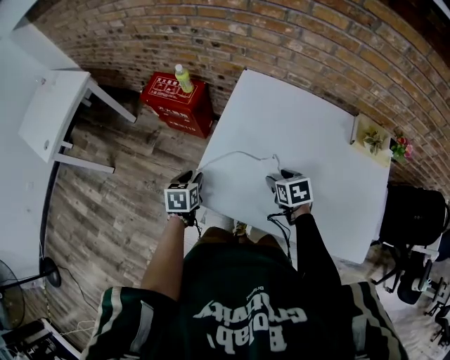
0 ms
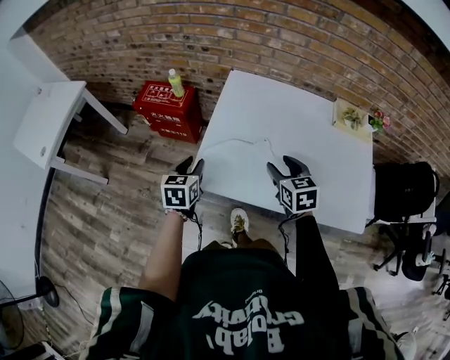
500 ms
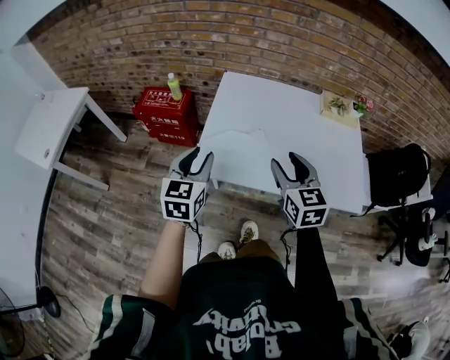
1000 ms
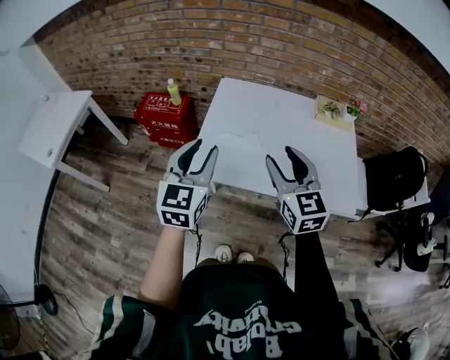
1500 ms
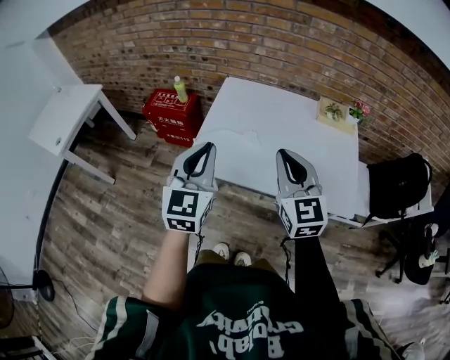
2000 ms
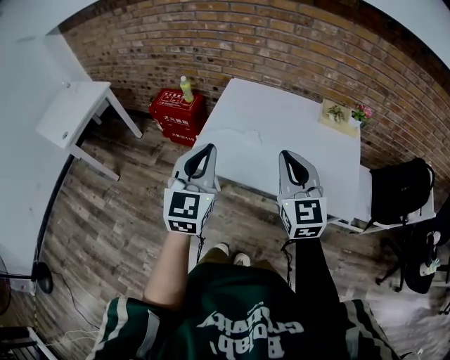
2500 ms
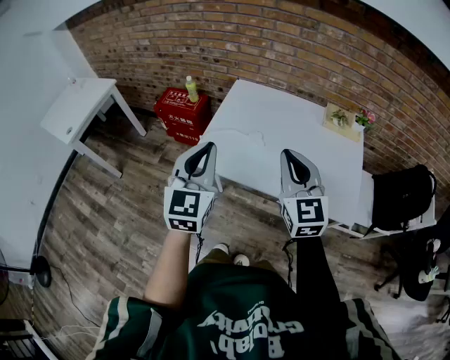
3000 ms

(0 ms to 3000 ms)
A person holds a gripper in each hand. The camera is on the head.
0 ms - 1500 ms: The grippers both shift upward and backward by roughly 40 cm. The right gripper tips its fingers upward by approximately 50 degrees, while the left gripper tilts its fingers approximately 40 degrees upward.
1500 ms - 3000 ms: The right gripper heads to the right, covering about 5 cm, and closes, while the left gripper goes some 5 cm backward, and closes.

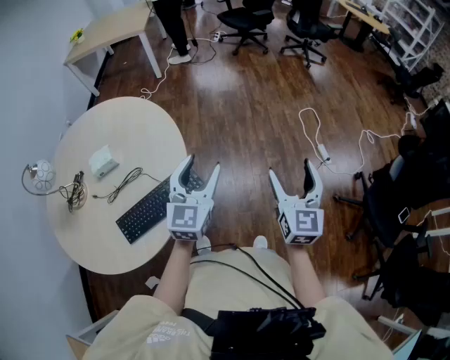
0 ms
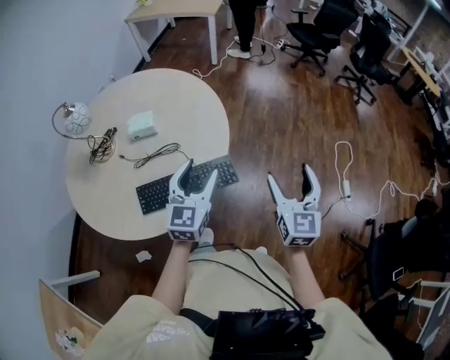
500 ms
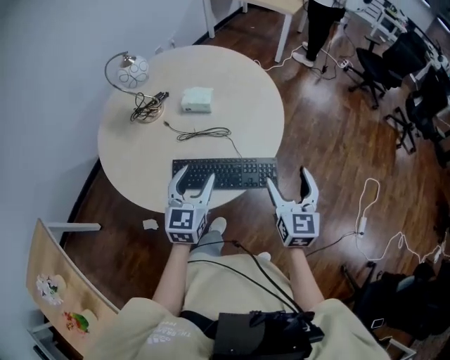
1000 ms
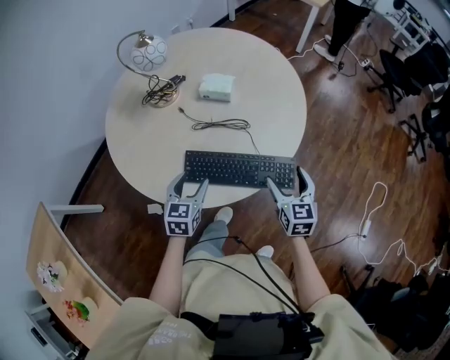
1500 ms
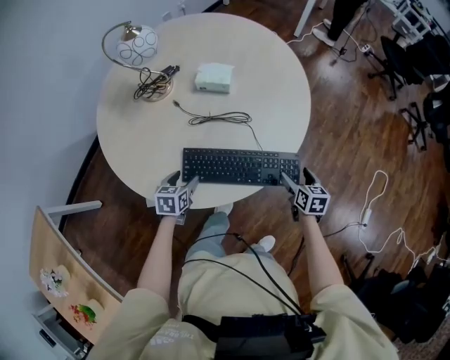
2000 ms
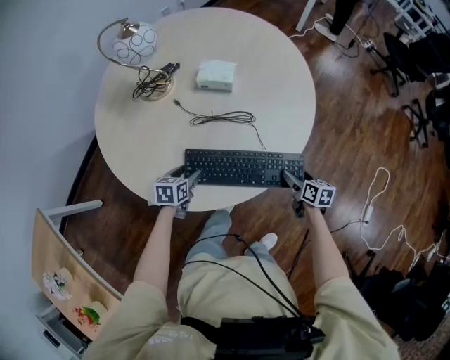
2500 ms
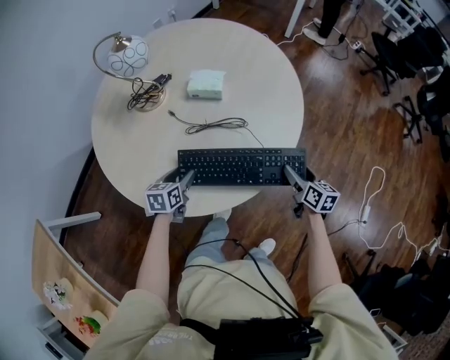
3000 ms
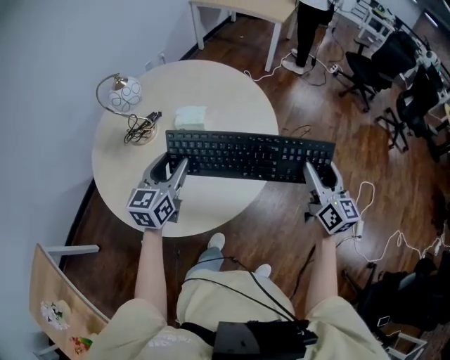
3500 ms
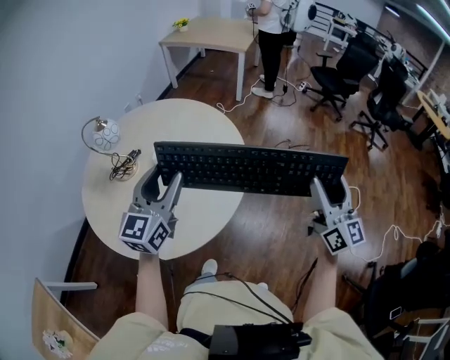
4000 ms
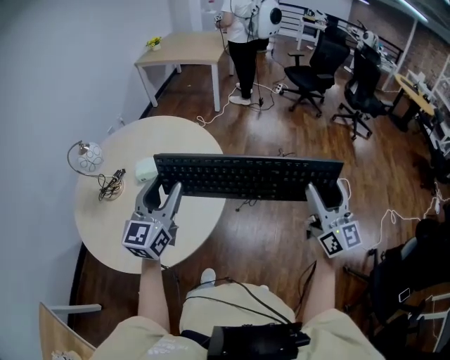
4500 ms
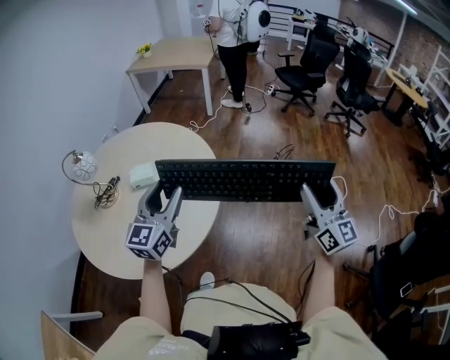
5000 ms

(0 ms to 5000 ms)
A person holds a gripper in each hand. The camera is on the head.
0 ms - 2500 ms: The left gripper moves approximately 60 cm, and tips its fingers downward by some 40 degrees. The right gripper is displaced downward by roughly 35 cm, and points its fingers approximately 30 degrees further downward.
2500 ms - 5000 ms: The two grippers go about 50 cm upward and to the right. The left gripper tilts its fingers roughly 50 degrees upward. Meanwhile the right gripper points its fingers about 60 degrees further upward.

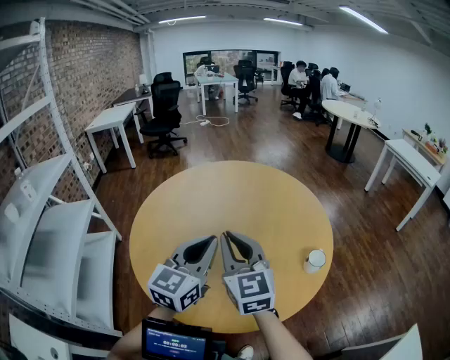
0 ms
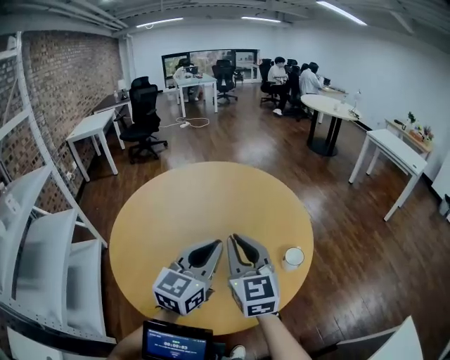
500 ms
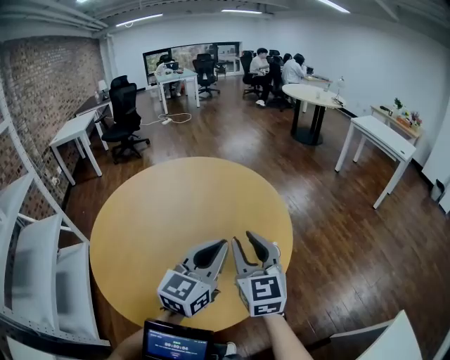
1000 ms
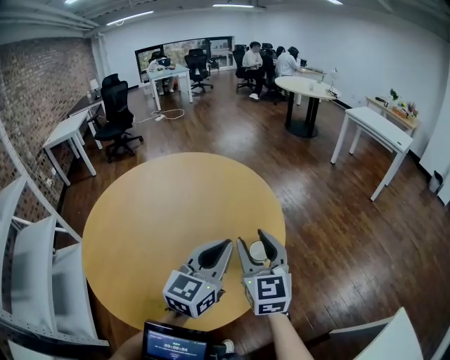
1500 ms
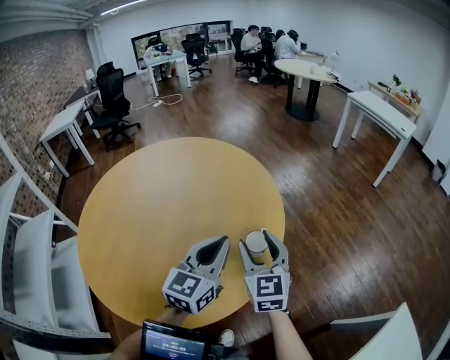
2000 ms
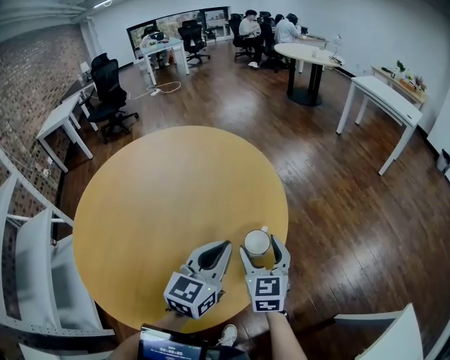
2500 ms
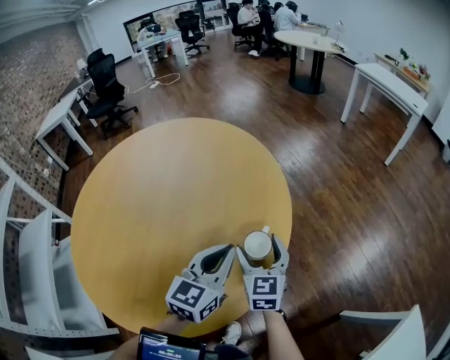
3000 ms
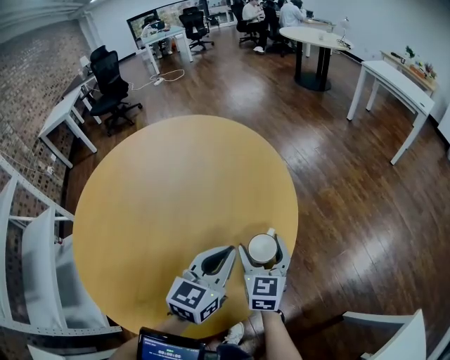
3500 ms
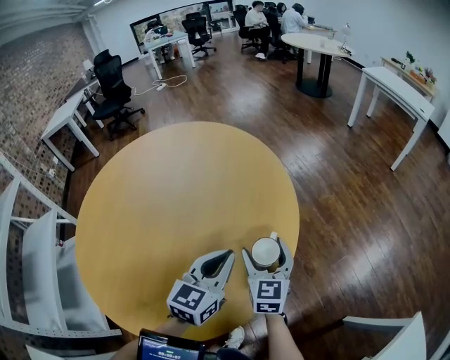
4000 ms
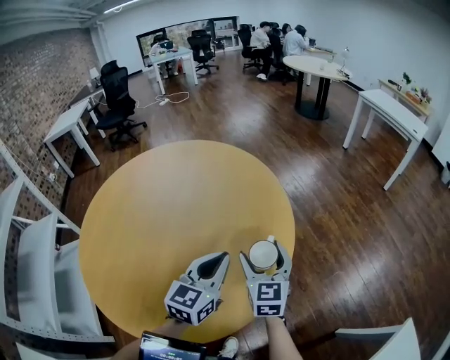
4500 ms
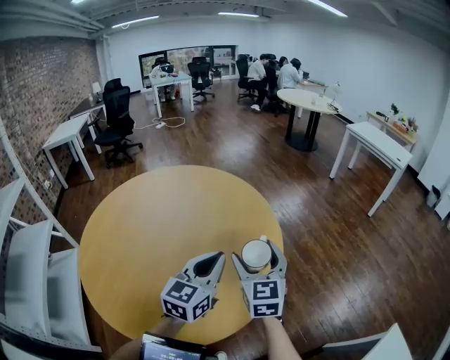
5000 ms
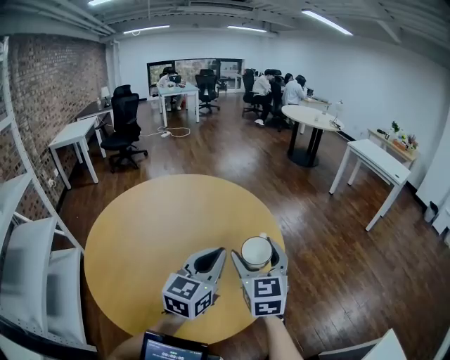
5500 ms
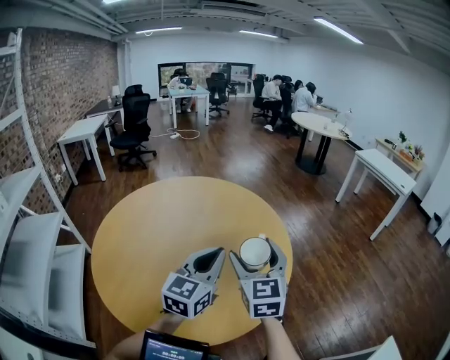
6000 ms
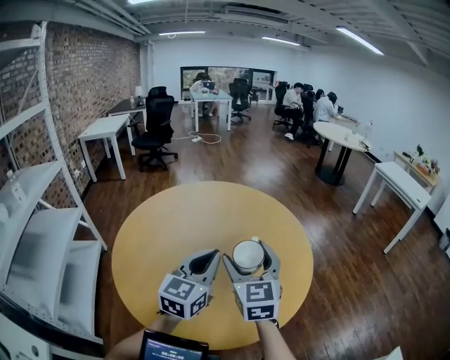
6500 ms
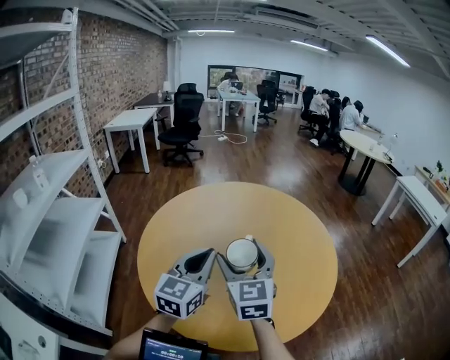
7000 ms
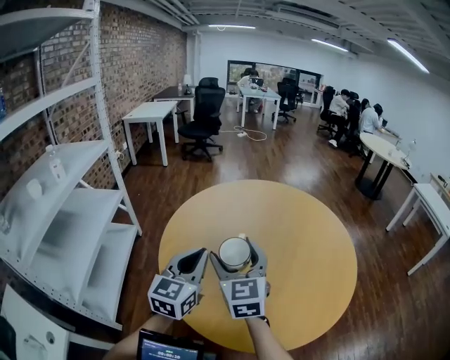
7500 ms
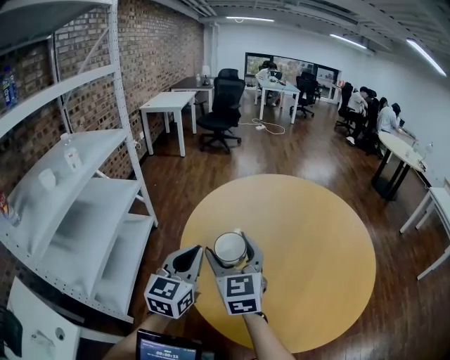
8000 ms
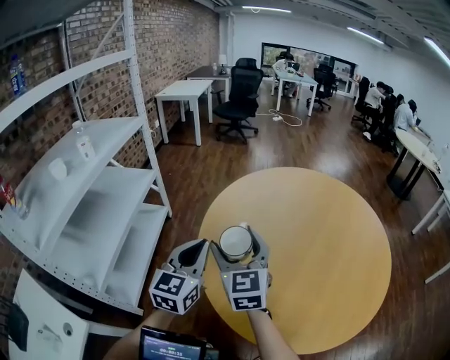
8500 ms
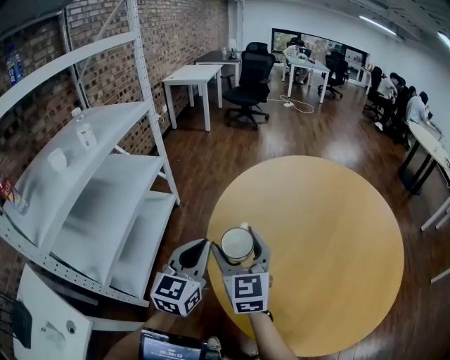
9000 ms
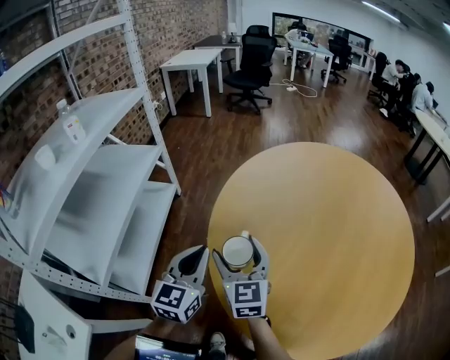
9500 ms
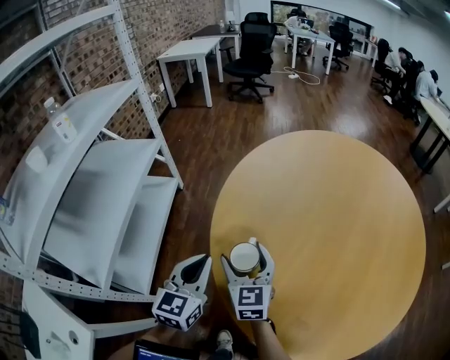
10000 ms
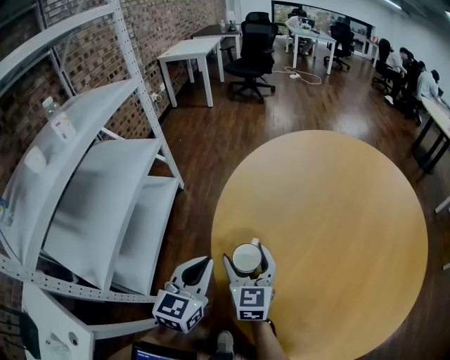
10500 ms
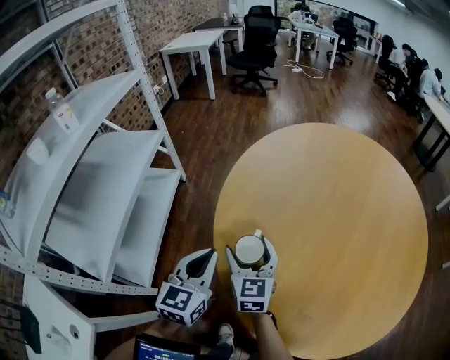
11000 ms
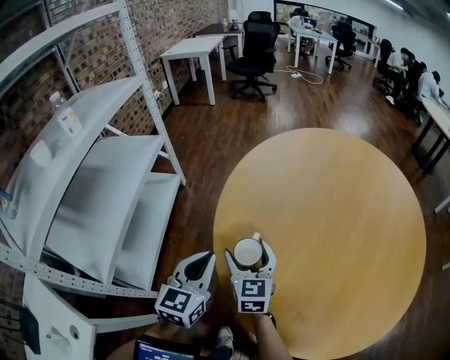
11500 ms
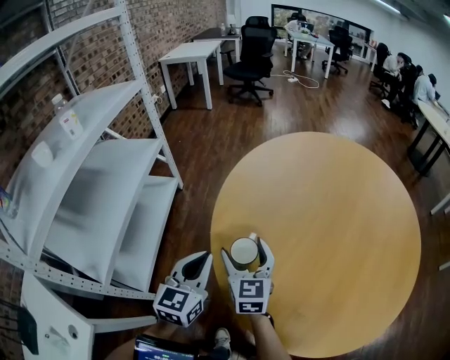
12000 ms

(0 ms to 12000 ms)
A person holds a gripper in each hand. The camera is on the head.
0 ms - 2000 ms: The right gripper shifts roughly 35 cm to the right and downward, rotates roughly 20 degrees, and opens; the left gripper travels to the right by some 25 cm.
2000 ms - 4000 ms: The left gripper is displaced downward by about 10 cm; the right gripper travels downward and forward by some 15 cm.
4000 ms - 6000 ms: Both grippers move upward and to the left, approximately 25 cm.
6000 ms - 8000 ms: The pair of grippers is taken roughly 40 cm. The right gripper turns by some 30 degrees; the left gripper turns by roughly 30 degrees.
8000 ms - 10000 ms: The left gripper travels downward and to the left by some 20 cm. Meanwhile the right gripper moves downward, roughly 25 cm.
10000 ms - 12000 ms: The grippers stay close to where they were, moving slightly.

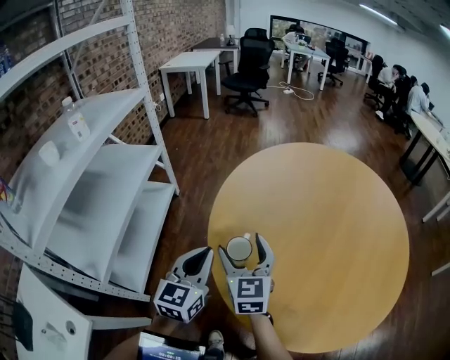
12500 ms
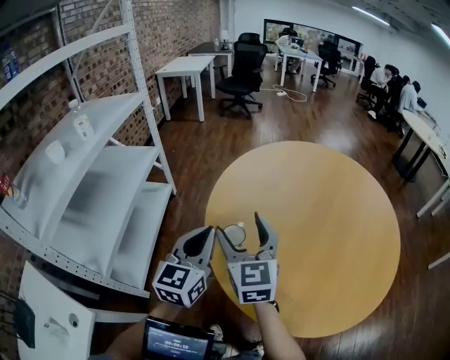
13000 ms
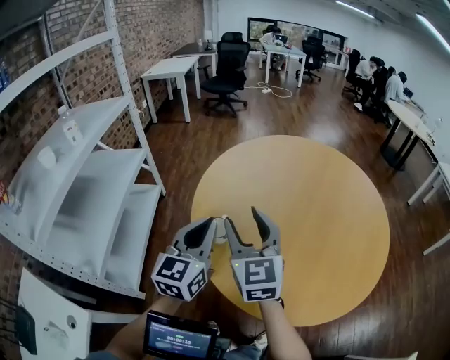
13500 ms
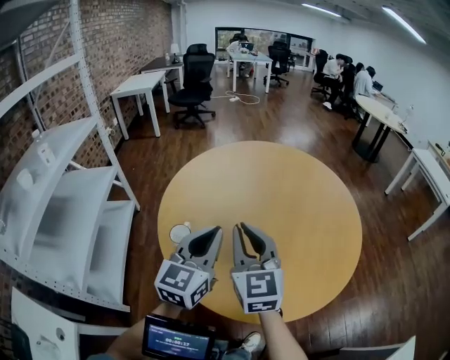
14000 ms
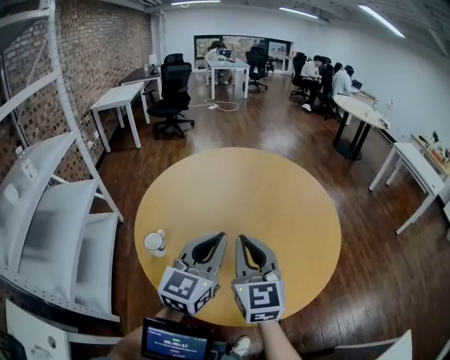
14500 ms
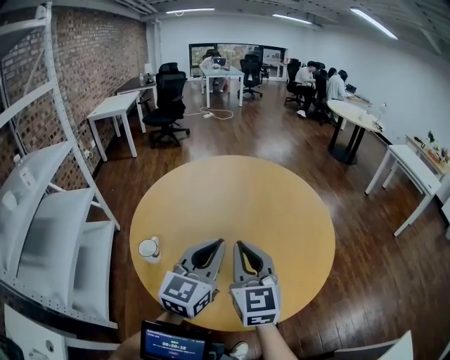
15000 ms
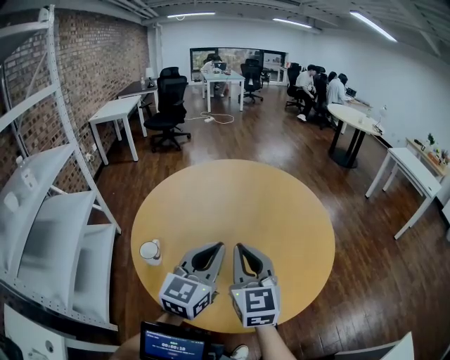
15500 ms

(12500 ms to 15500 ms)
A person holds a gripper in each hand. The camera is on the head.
12500 ms - 14000 ms: The right gripper travels to the right, upward and backward by approximately 25 cm, and closes its fingers; the left gripper is displaced to the right and upward by some 25 cm.
14000 ms - 15500 ms: The grippers both shift to the right by roughly 10 cm.

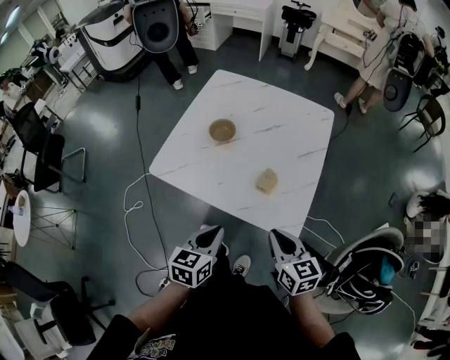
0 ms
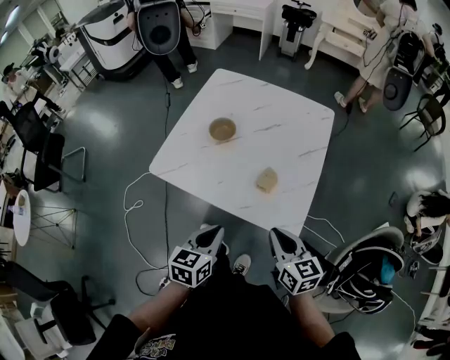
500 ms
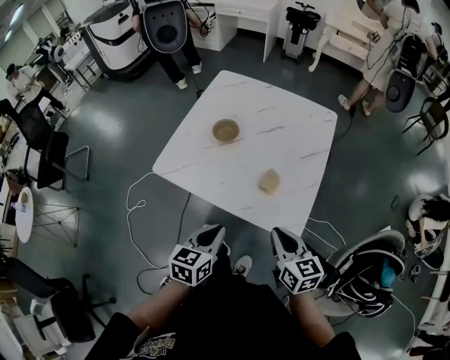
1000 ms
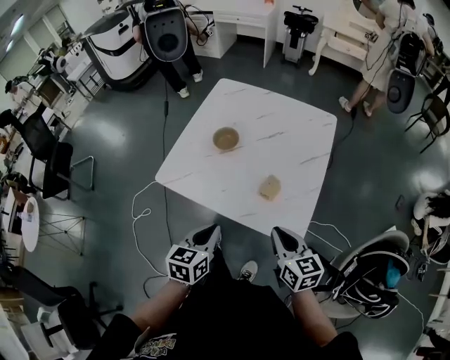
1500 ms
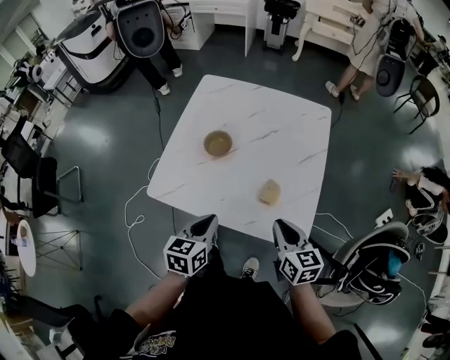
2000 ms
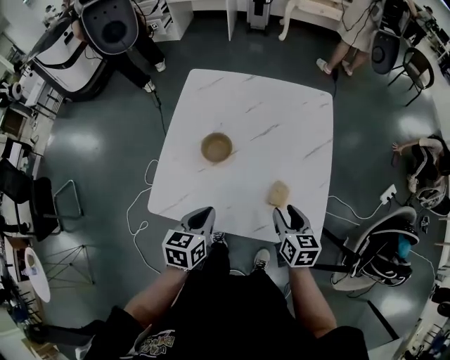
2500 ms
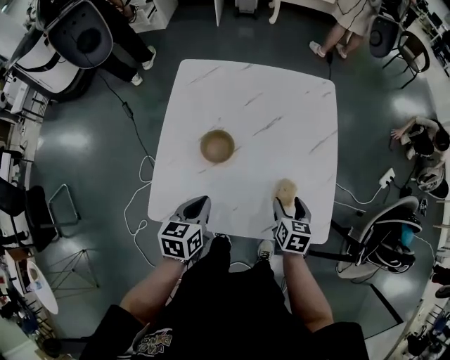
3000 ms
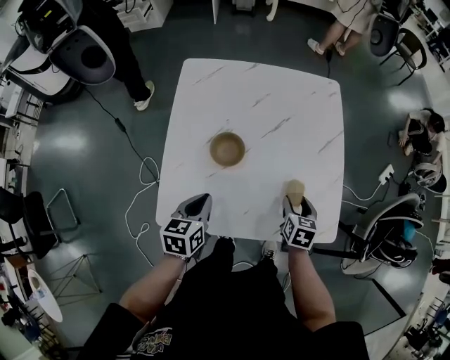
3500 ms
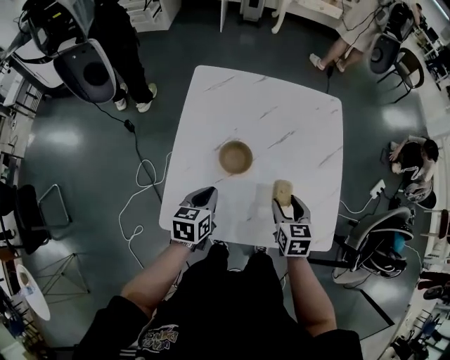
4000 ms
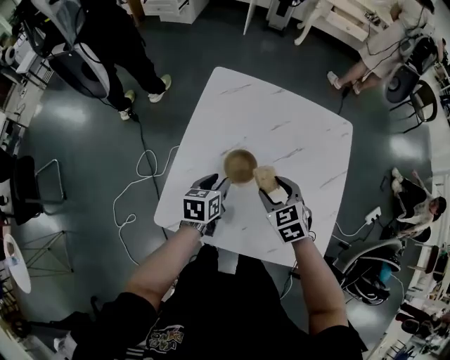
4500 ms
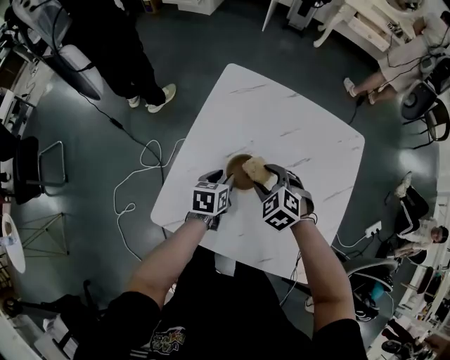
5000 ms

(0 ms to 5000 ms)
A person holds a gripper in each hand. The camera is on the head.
0 ms - 2500 ms: The left gripper moves forward and to the left, about 20 cm. The right gripper travels forward and downward by some 15 cm, changes its angle by approximately 30 degrees, and opens.
2500 ms - 5000 ms: The left gripper shifts by some 25 cm, and opens up. Meanwhile the right gripper changes place by about 25 cm, and twists roughly 70 degrees counterclockwise, seen from behind.
